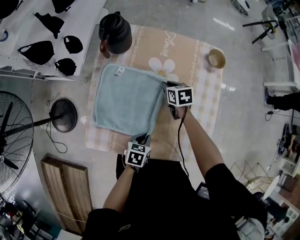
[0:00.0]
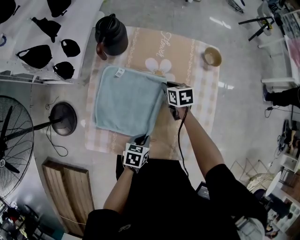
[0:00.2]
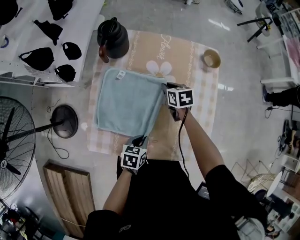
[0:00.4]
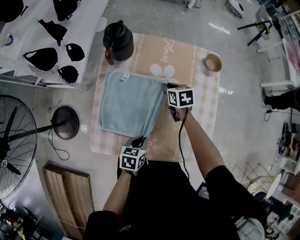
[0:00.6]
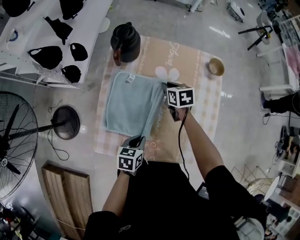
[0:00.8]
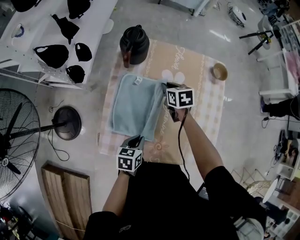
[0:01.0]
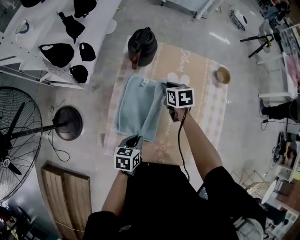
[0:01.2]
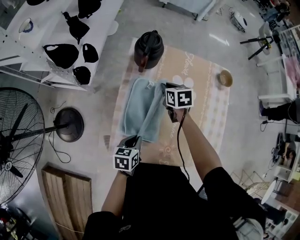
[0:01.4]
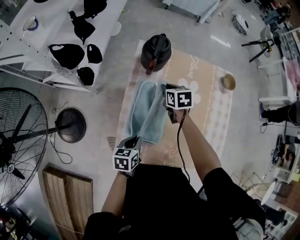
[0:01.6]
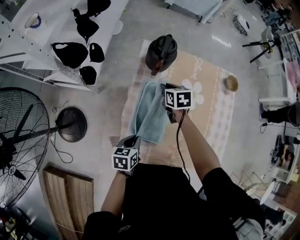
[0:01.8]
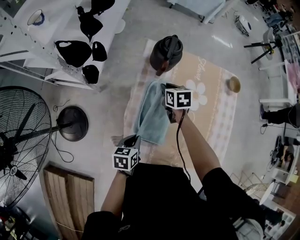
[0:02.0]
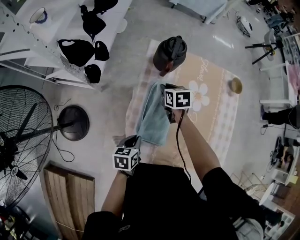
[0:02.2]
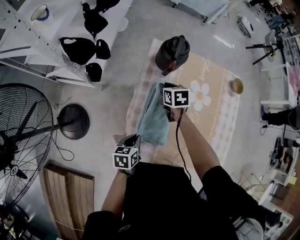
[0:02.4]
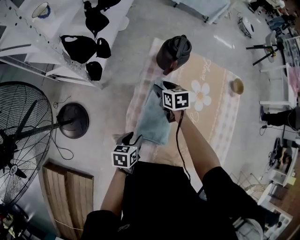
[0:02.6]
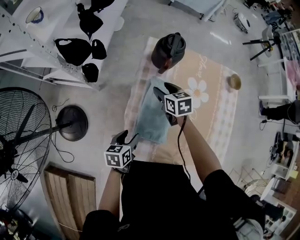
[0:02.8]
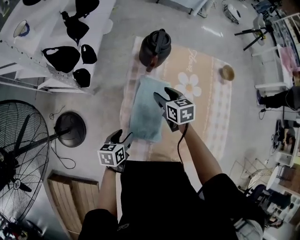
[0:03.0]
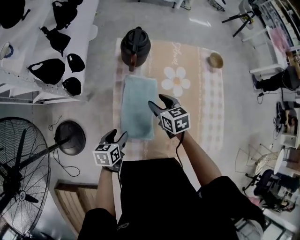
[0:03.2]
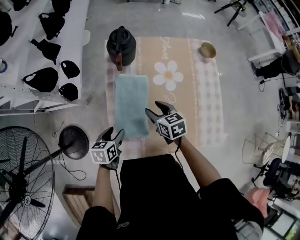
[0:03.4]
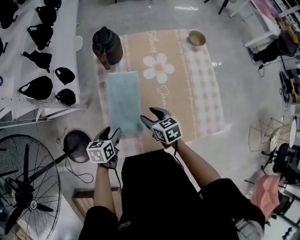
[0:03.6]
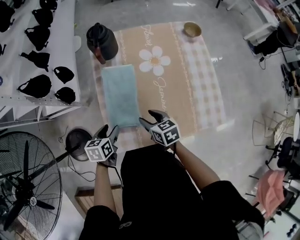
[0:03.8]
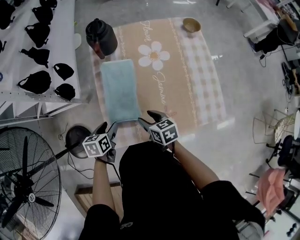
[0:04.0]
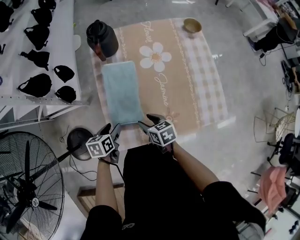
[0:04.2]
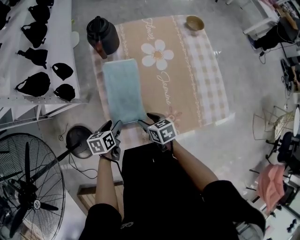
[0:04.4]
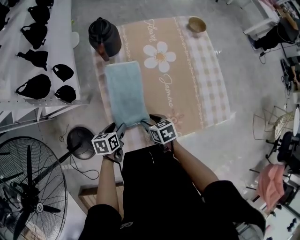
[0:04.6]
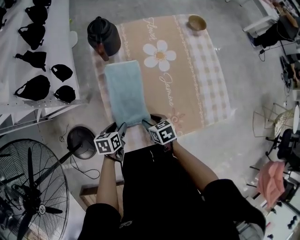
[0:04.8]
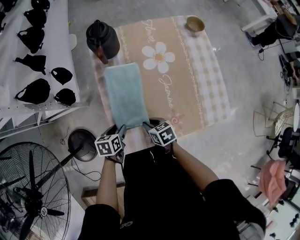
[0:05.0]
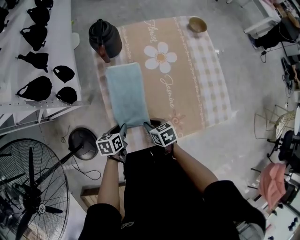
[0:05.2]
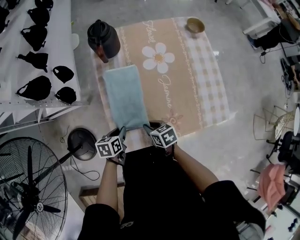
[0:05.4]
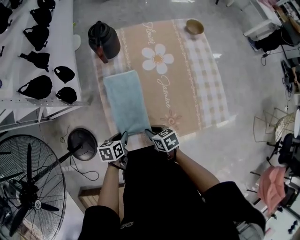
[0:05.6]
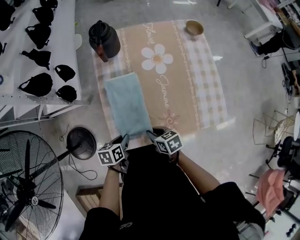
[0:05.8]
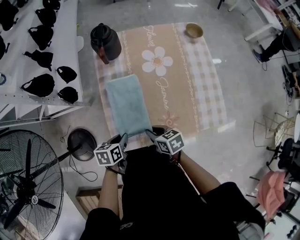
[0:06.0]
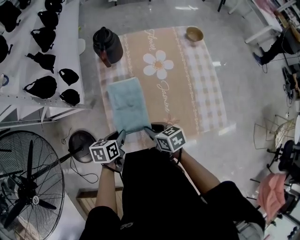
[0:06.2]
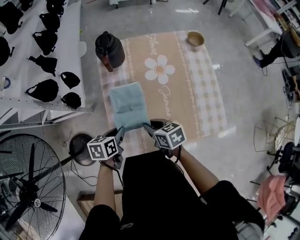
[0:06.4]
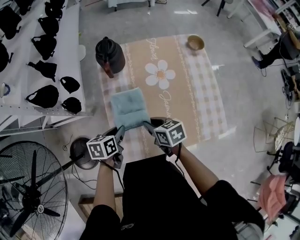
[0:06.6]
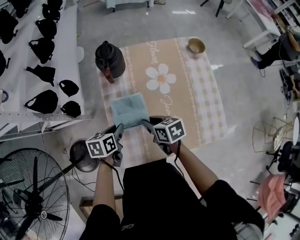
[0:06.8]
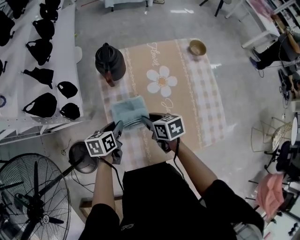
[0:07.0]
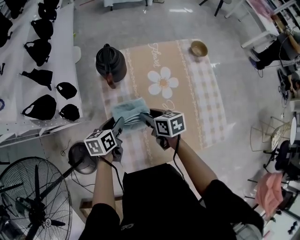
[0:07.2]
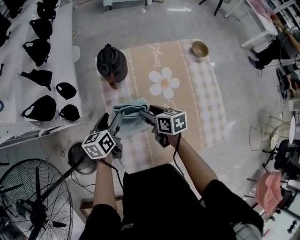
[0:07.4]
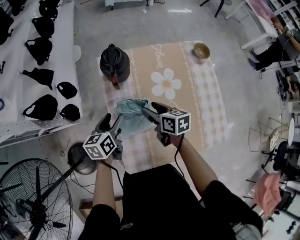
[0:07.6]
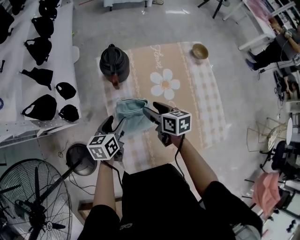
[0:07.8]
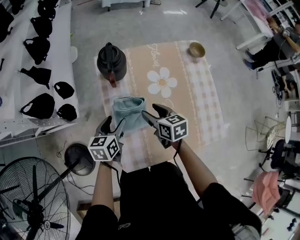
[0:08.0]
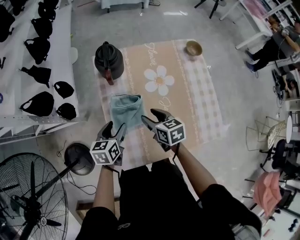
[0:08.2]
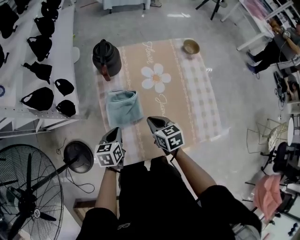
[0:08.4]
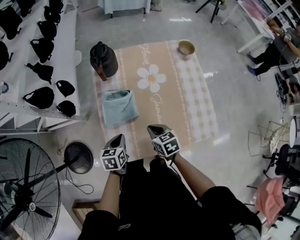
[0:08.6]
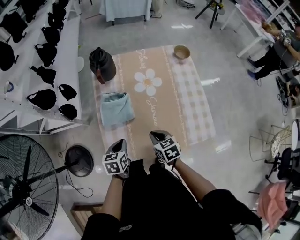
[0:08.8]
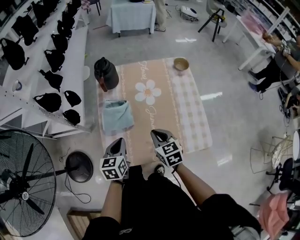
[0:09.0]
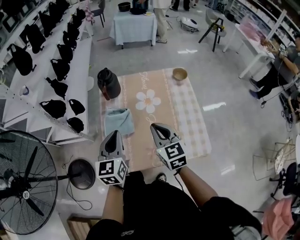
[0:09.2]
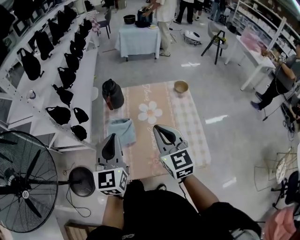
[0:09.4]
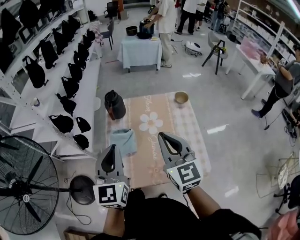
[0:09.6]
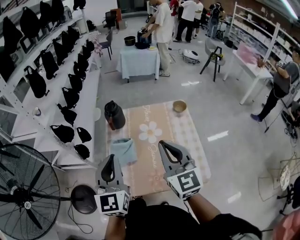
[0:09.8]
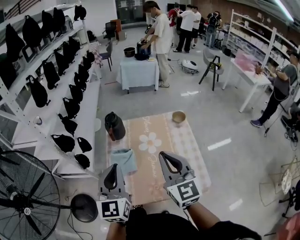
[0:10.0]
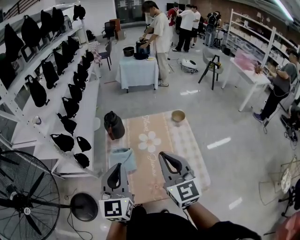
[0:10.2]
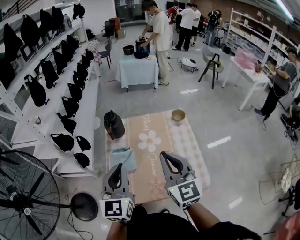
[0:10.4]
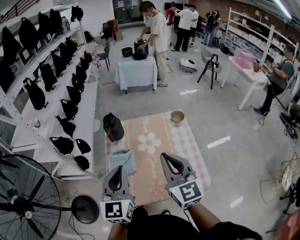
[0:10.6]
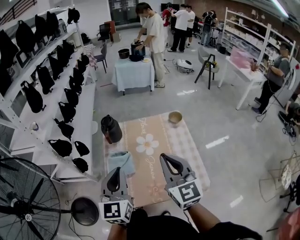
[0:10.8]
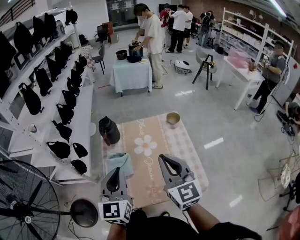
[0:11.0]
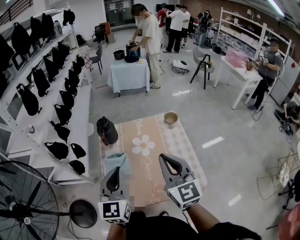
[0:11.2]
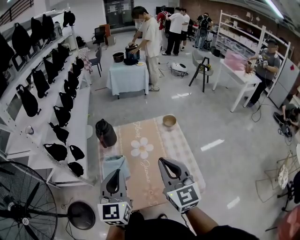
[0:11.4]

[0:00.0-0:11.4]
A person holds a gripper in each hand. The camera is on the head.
0.0 to 1.4 s: The right gripper heads to the left and upward, covering about 20 cm. Meanwhile the left gripper is displaced to the left by some 20 cm.
1.4 to 2.8 s: The grippers both shift to the left by about 10 cm. The left gripper opens up. Meanwhile the right gripper opens its fingers.
2.8 to 4.2 s: The right gripper shifts about 30 cm backward and to the right, and changes its angle by some 20 degrees.
4.2 to 5.6 s: The right gripper closes its fingers. The left gripper ends up approximately 5 cm from where it was, and closes.
5.6 to 7.2 s: The grippers both shift forward and upward by some 25 cm.
7.2 to 8.6 s: The left gripper heads backward, covering roughly 15 cm, and closes, while the right gripper goes about 15 cm backward and to the right, rotates about 20 degrees, and closes.
8.6 to 10.0 s: Both grippers move upward, some 40 cm. The left gripper tips its fingers upward by about 50 degrees. The right gripper angles its fingers upward, by approximately 50 degrees.
10.0 to 11.4 s: The grippers make only small movements.

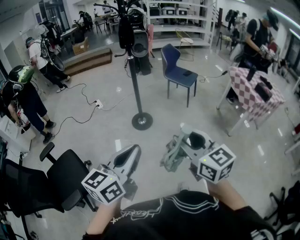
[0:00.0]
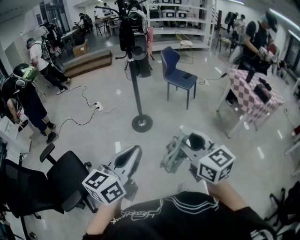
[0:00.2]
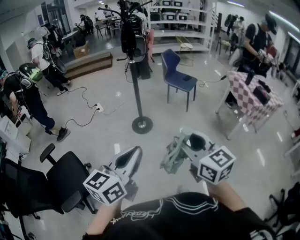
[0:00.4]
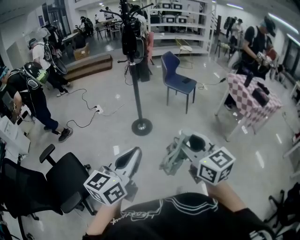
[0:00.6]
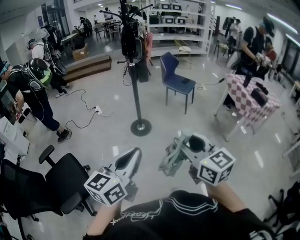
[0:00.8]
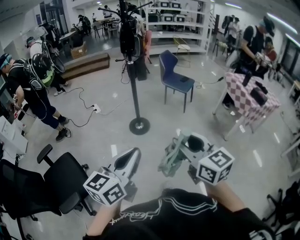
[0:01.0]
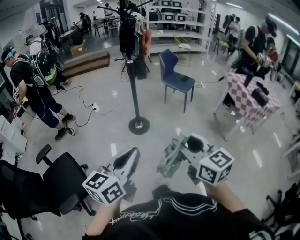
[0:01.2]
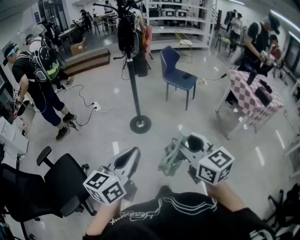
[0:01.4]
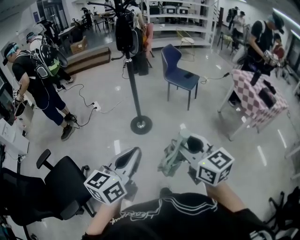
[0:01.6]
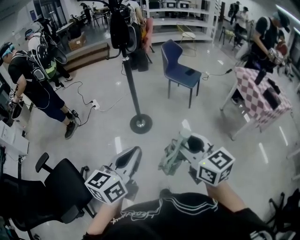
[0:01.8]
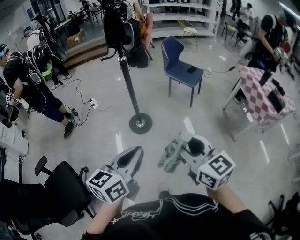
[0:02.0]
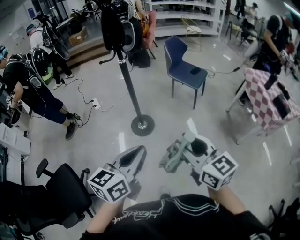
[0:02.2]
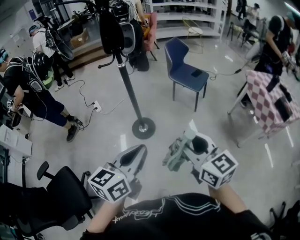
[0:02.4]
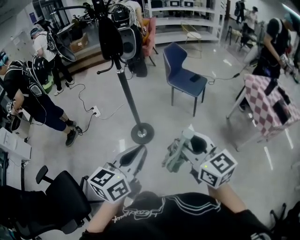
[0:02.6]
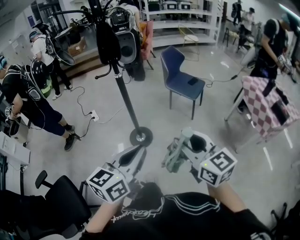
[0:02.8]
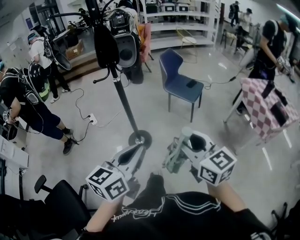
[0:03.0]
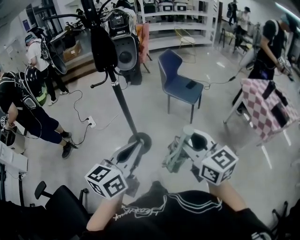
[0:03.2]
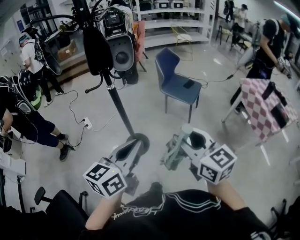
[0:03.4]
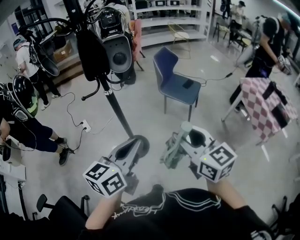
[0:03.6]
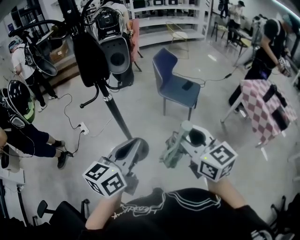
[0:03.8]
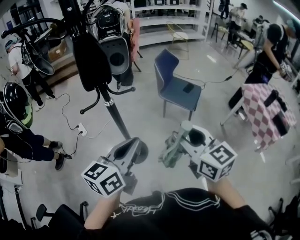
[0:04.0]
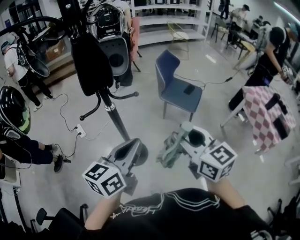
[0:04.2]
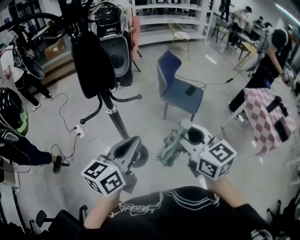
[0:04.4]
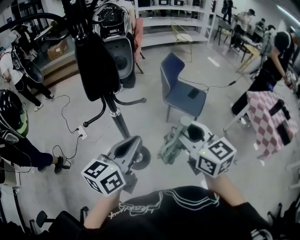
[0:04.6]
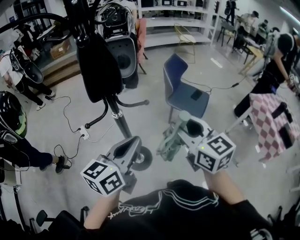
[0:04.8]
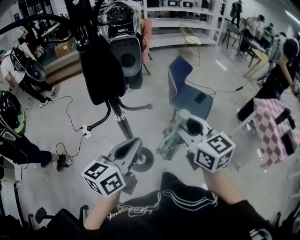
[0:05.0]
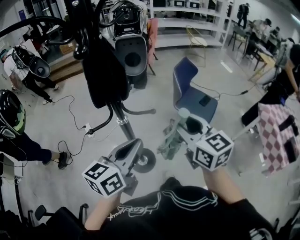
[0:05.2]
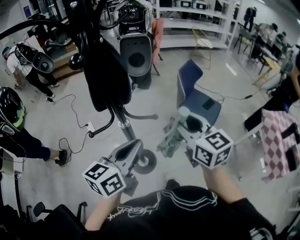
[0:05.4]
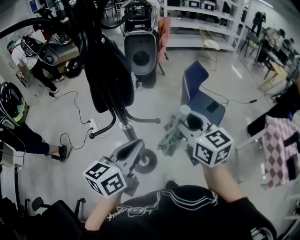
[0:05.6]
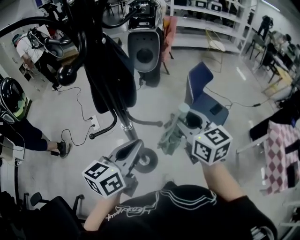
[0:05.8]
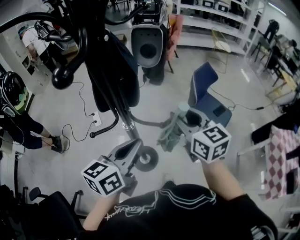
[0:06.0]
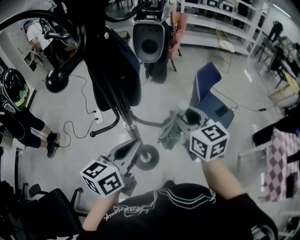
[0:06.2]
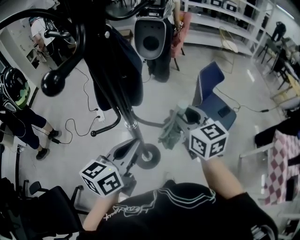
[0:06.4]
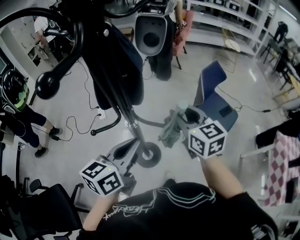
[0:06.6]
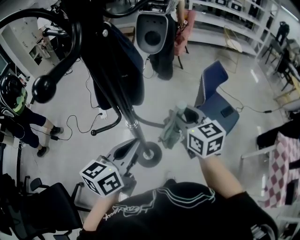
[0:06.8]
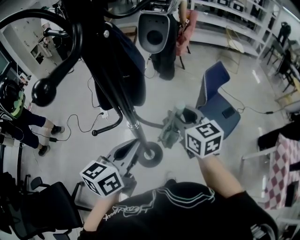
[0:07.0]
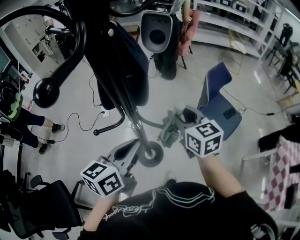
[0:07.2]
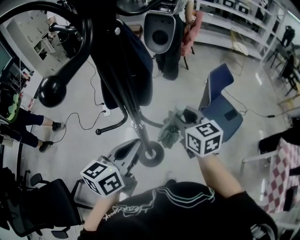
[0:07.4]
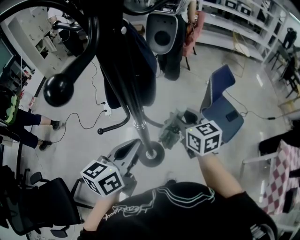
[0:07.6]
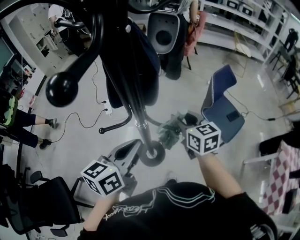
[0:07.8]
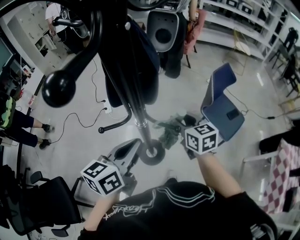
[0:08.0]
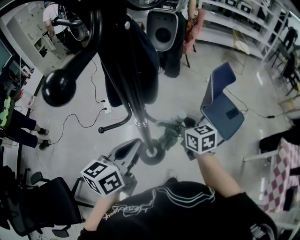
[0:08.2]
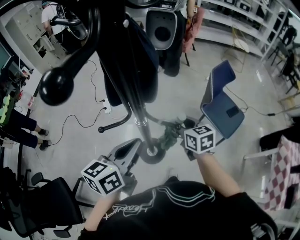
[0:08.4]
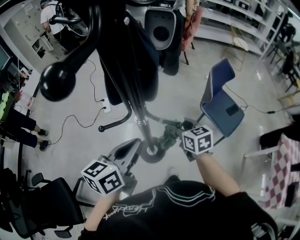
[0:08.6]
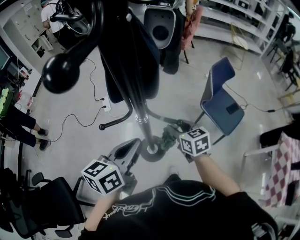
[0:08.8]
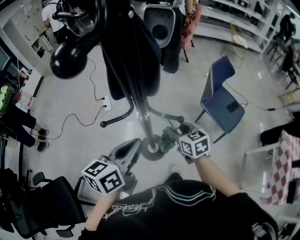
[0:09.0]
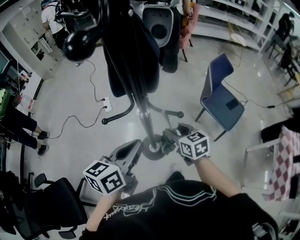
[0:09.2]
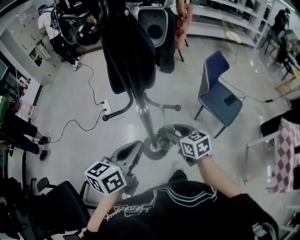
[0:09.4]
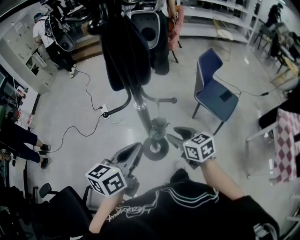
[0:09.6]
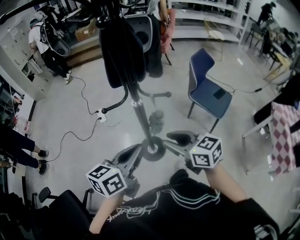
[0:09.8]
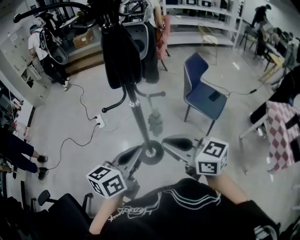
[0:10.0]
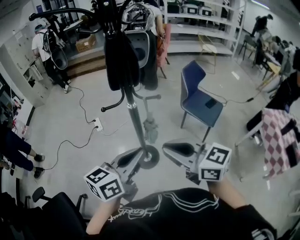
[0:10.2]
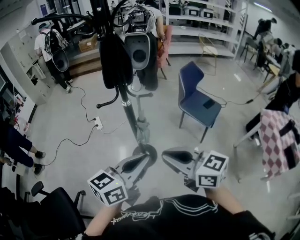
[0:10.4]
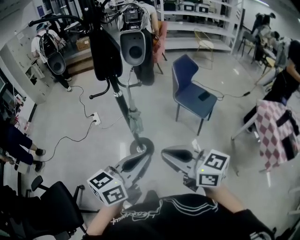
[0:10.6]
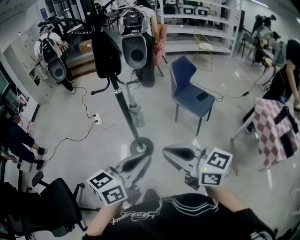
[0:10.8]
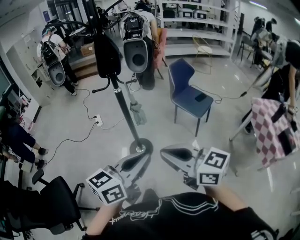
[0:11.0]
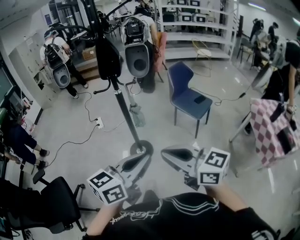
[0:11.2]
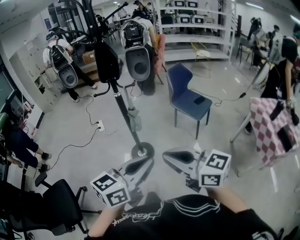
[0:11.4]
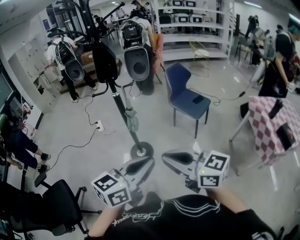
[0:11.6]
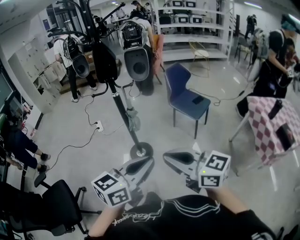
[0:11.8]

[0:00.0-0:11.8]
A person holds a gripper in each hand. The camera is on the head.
0.0 to 1.4 s: There are only small adjustments of the grippers.
1.4 to 3.0 s: Both grippers move forward, approximately 30 cm.
3.0 to 4.4 s: Both grippers move forward, about 30 cm.
4.4 to 6.0 s: The left gripper travels forward by some 10 cm. Meanwhile the right gripper goes about 20 cm forward.
6.0 to 7.4 s: The right gripper heads downward, covering some 5 cm.
7.4 to 8.8 s: The right gripper travels downward by about 15 cm.
8.8 to 10.4 s: The left gripper moves backward, roughly 25 cm, and changes its angle by roughly 20 degrees. The right gripper moves backward and upward, roughly 40 cm, turns by about 30 degrees, and closes its fingers.
10.4 to 11.8 s: The grippers both shift backward and to the right by roughly 20 cm.

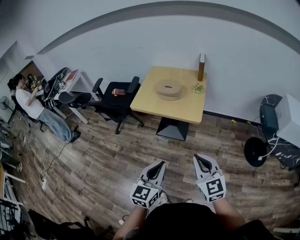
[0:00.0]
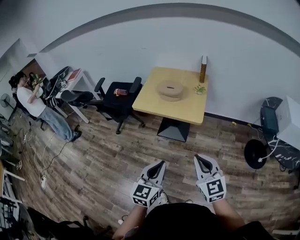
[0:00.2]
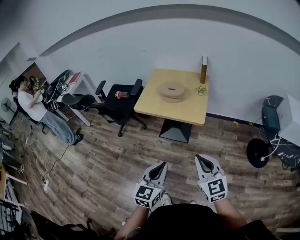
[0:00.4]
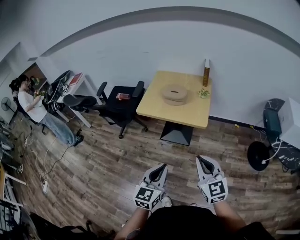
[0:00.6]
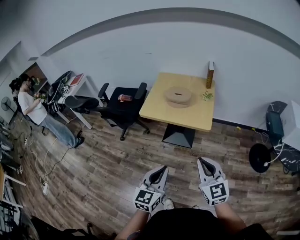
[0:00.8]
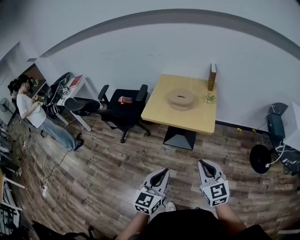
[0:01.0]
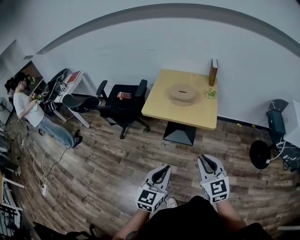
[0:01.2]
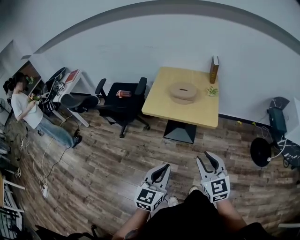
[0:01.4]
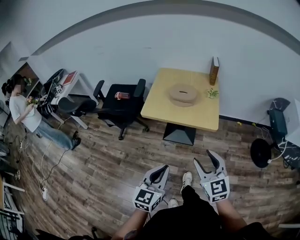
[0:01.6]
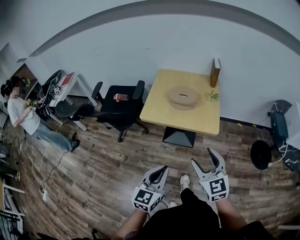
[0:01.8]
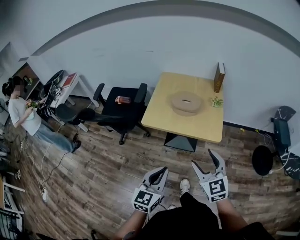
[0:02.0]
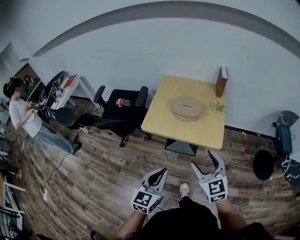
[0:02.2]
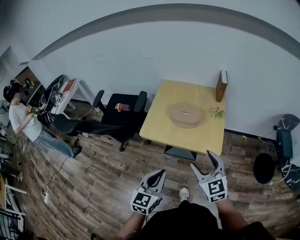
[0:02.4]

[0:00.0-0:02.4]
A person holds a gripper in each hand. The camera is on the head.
0.0 to 1.2 s: The grippers both shift to the left by about 10 cm.
1.2 to 2.4 s: Both grippers move forward, some 20 cm. The right gripper opens.
